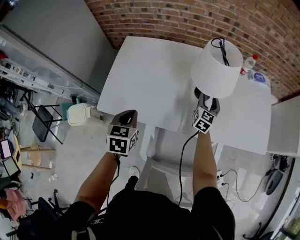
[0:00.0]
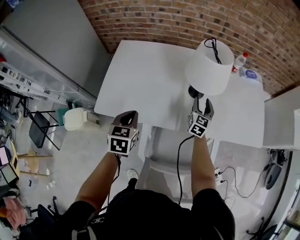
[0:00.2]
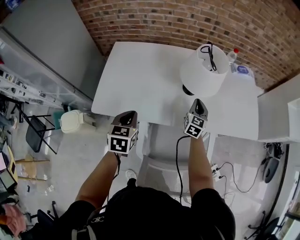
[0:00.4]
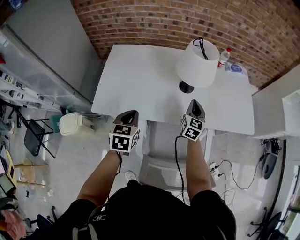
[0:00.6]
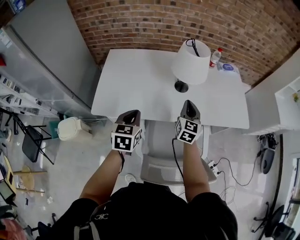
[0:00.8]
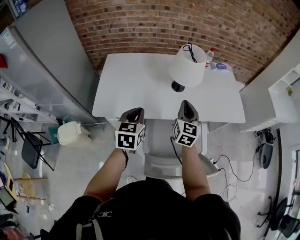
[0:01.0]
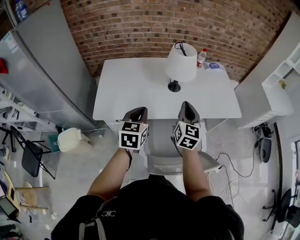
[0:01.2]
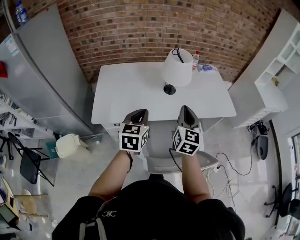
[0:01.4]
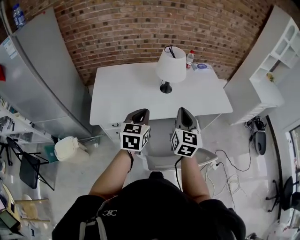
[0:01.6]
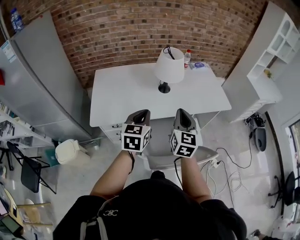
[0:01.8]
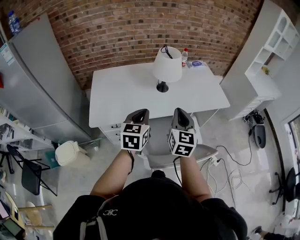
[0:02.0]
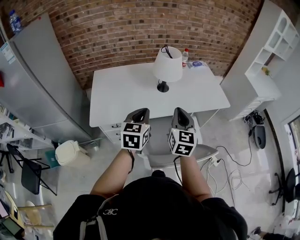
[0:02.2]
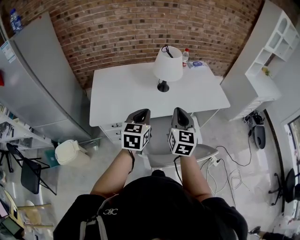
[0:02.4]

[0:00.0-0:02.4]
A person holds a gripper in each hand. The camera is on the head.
0:00.0 to 0:01.2: The left gripper shifts some 15 cm upward, backward and to the right, and turns by roughly 30 degrees. Meanwhile the right gripper heads backward and upward, covering approximately 35 cm, and closes.
0:01.2 to 0:02.4: The right gripper moves backward, some 10 cm; the left gripper shifts by approximately 5 cm.

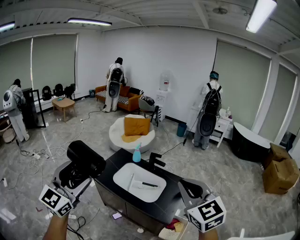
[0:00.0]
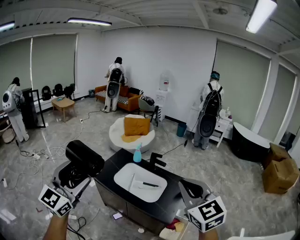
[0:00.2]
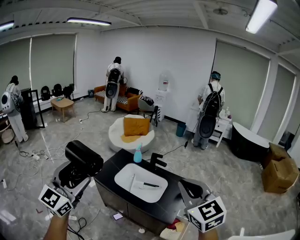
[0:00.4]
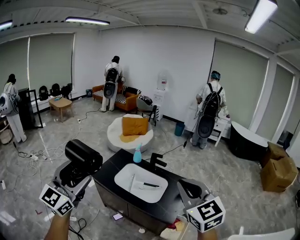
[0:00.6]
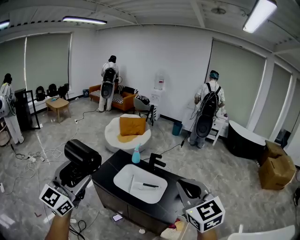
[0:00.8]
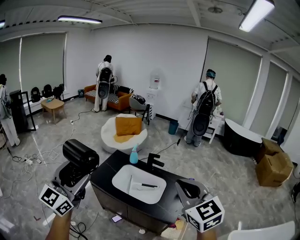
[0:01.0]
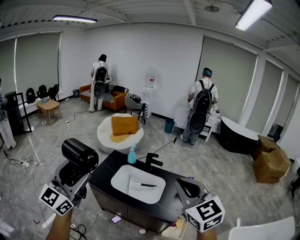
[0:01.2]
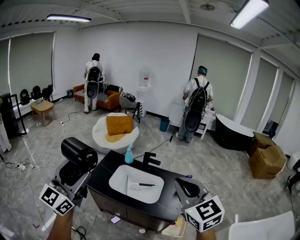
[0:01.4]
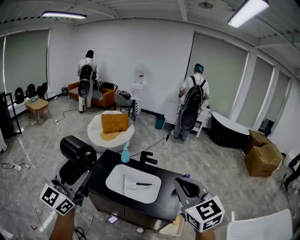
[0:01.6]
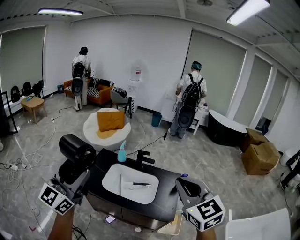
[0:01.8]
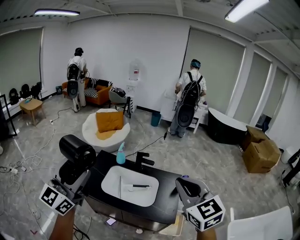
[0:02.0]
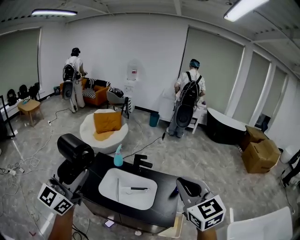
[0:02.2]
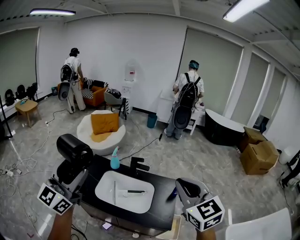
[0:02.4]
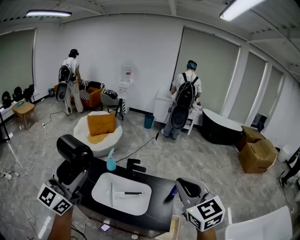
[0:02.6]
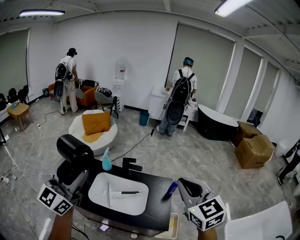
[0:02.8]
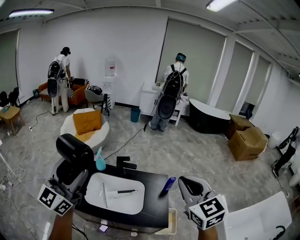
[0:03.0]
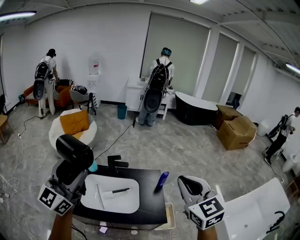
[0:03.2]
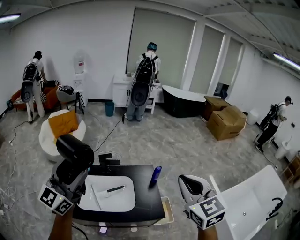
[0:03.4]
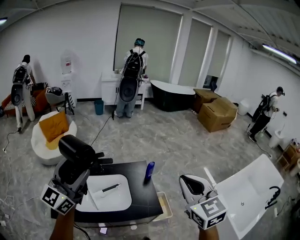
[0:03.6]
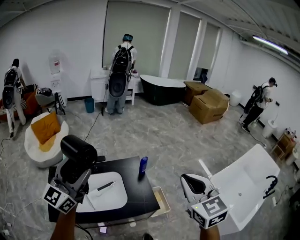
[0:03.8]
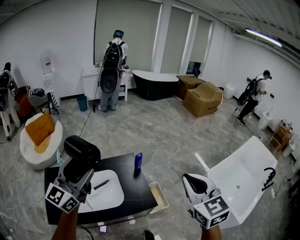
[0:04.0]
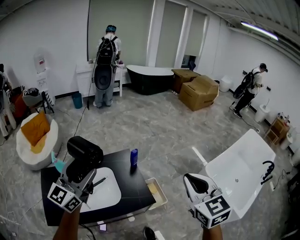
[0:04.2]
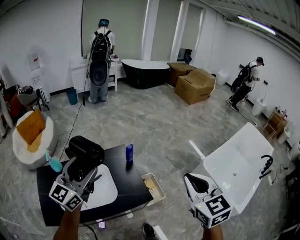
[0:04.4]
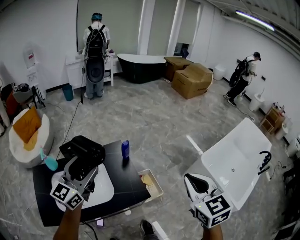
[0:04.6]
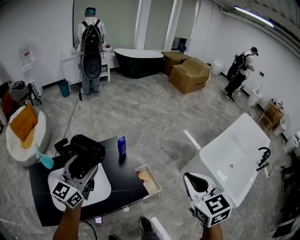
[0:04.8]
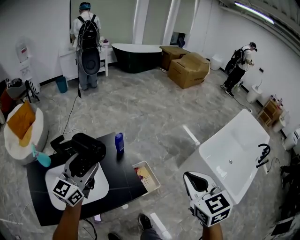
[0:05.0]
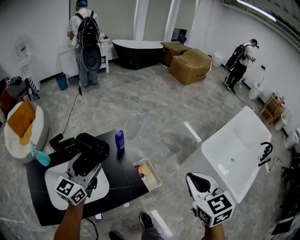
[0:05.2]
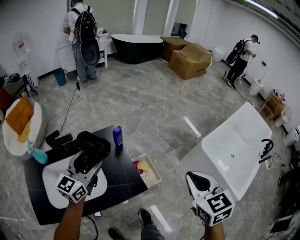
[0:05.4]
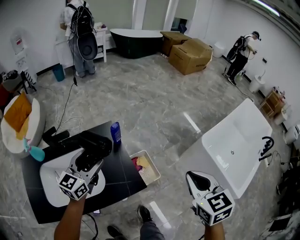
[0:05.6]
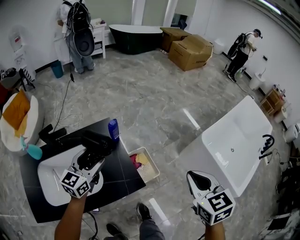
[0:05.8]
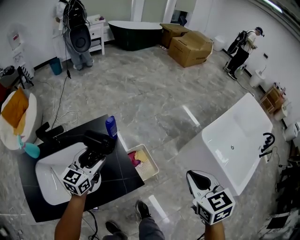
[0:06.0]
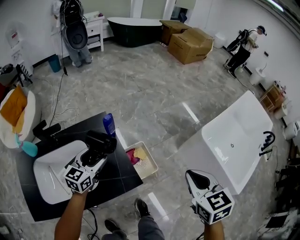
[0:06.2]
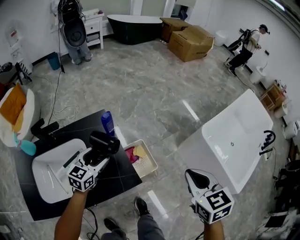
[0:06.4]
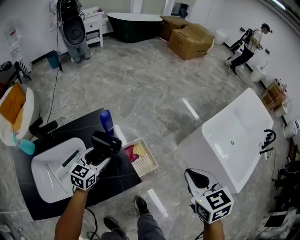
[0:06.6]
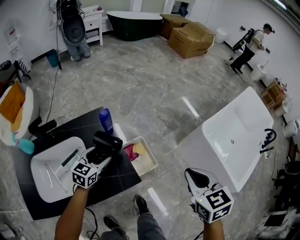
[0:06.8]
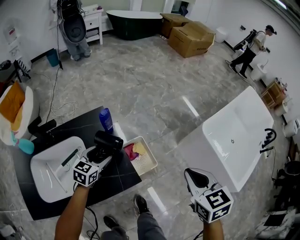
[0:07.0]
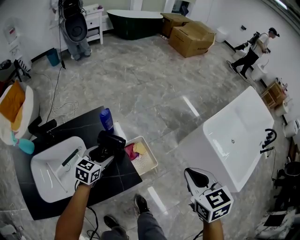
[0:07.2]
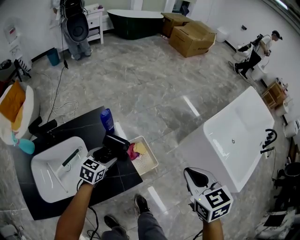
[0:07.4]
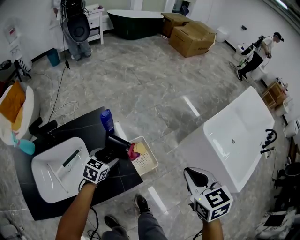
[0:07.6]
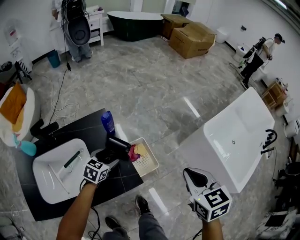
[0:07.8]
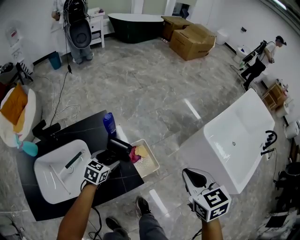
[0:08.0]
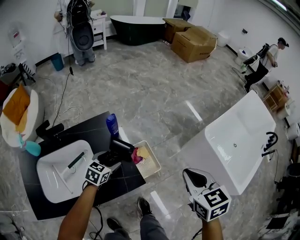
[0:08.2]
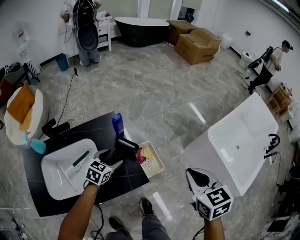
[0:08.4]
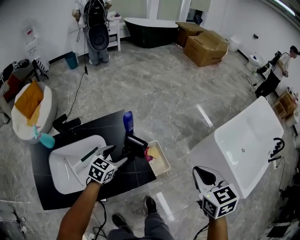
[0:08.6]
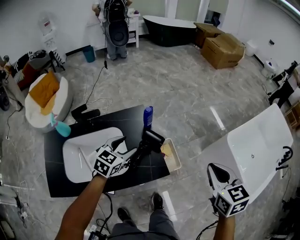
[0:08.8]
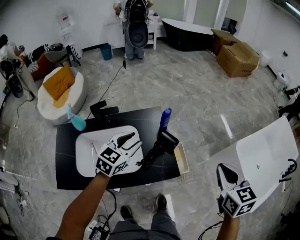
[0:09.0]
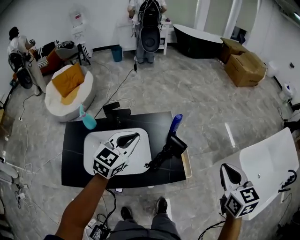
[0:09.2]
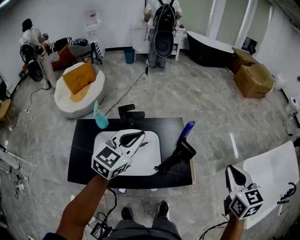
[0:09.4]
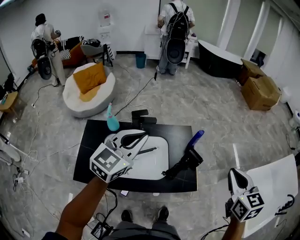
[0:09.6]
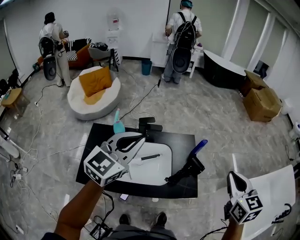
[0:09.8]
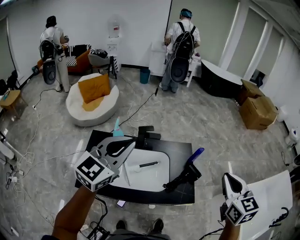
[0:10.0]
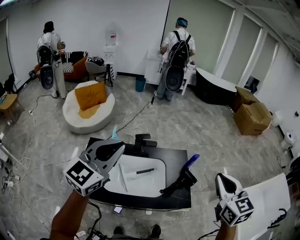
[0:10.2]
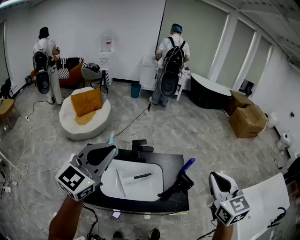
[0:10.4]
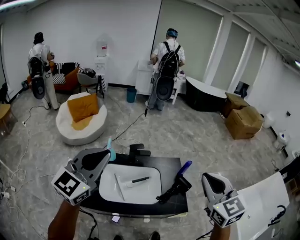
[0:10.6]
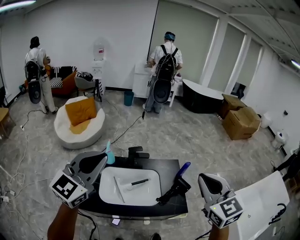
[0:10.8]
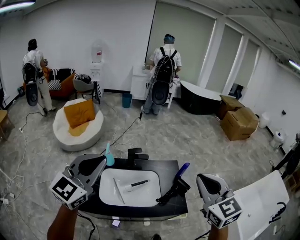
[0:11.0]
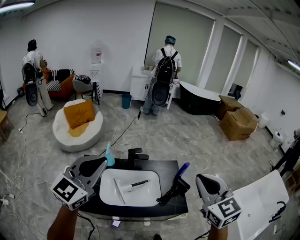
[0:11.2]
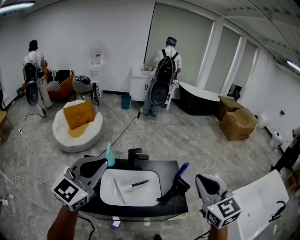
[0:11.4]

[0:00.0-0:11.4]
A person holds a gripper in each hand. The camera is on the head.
0:00.0 to 0:01.4: The left gripper heads forward and to the left, covering roughly 10 cm, while the right gripper goes approximately 10 cm to the left.
0:01.4 to 0:02.8: The right gripper moves forward and to the right, approximately 20 cm, while the left gripper heads forward, covering about 20 cm.
0:02.8 to 0:04.2: The right gripper ends up some 20 cm from where it was, and changes its angle by approximately 40 degrees; the left gripper changes place by roughly 25 cm, and changes its angle by approximately 40 degrees.
0:04.2 to 0:05.6: The left gripper heads downward and forward, covering approximately 25 cm, and turns by about 20 degrees. The right gripper moves downward and to the right, some 20 cm.
0:05.6 to 0:07.2: The right gripper shifts some 10 cm downward. Meanwhile the left gripper moves downward, roughly 20 cm, and changes its angle by some 30 degrees.
0:07.2 to 0:08.6: The right gripper changes place by approximately 5 cm, while the left gripper is displaced upward by roughly 5 cm.
0:08.6 to 0:10.0: The right gripper is displaced to the left and upward by some 35 cm, and changes its angle by roughly 20 degrees. The left gripper shifts approximately 50 cm upward and to the left, angles its fingers upward, by about 30 degrees, and closes up.
0:10.0 to 0:11.4: The left gripper moves upward, backward and to the left, some 15 cm, while the right gripper is displaced to the left, upward and backward by approximately 15 cm.

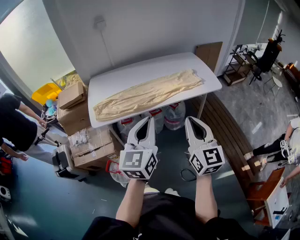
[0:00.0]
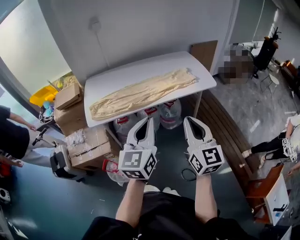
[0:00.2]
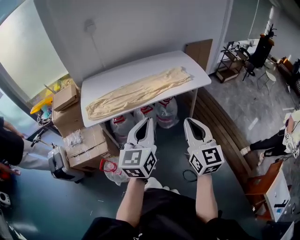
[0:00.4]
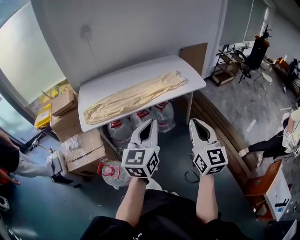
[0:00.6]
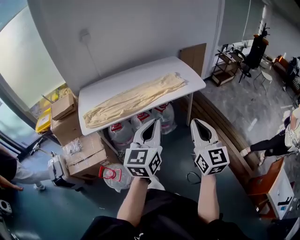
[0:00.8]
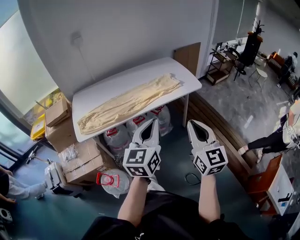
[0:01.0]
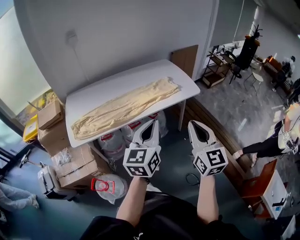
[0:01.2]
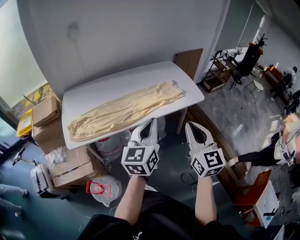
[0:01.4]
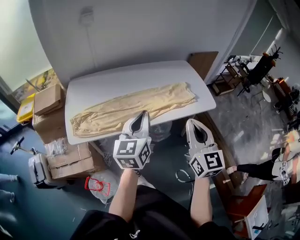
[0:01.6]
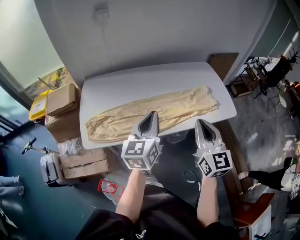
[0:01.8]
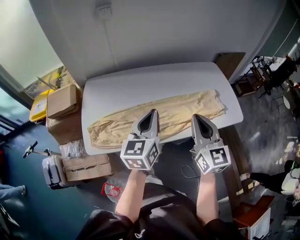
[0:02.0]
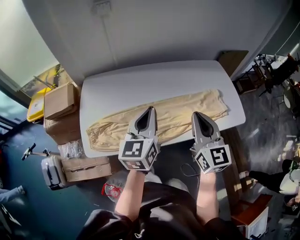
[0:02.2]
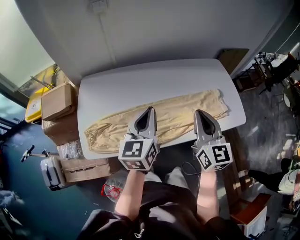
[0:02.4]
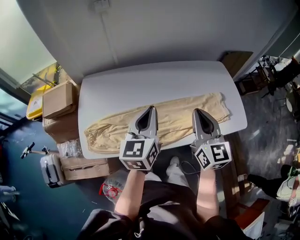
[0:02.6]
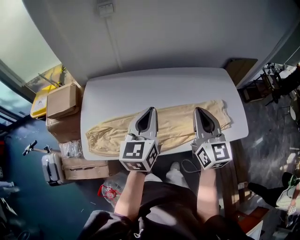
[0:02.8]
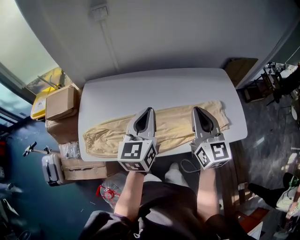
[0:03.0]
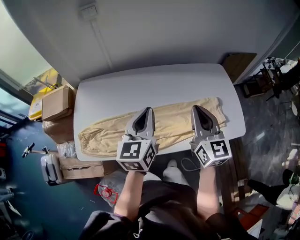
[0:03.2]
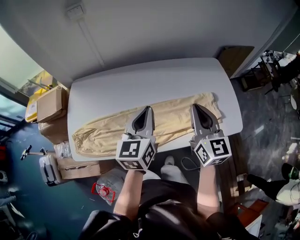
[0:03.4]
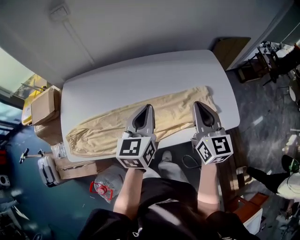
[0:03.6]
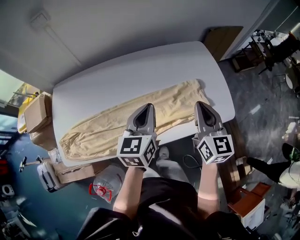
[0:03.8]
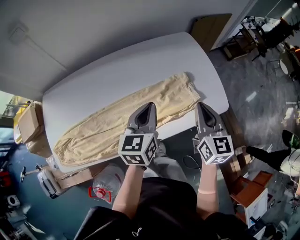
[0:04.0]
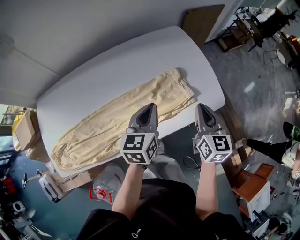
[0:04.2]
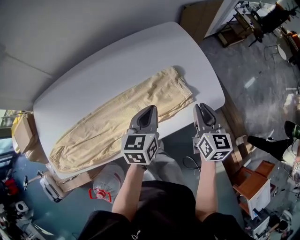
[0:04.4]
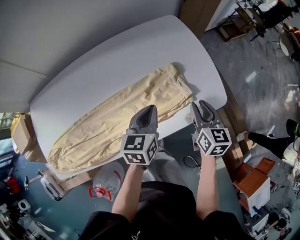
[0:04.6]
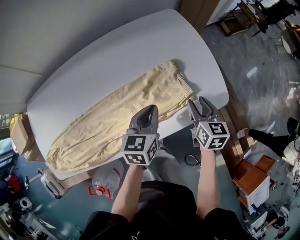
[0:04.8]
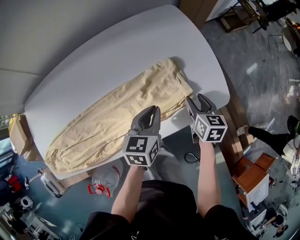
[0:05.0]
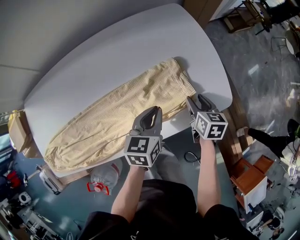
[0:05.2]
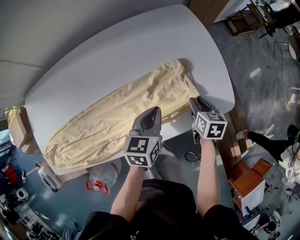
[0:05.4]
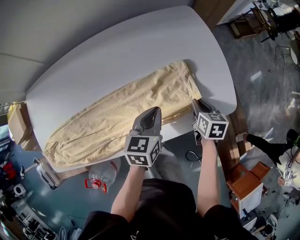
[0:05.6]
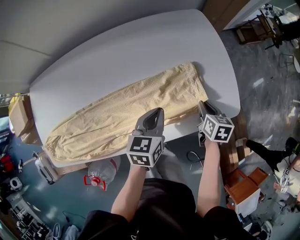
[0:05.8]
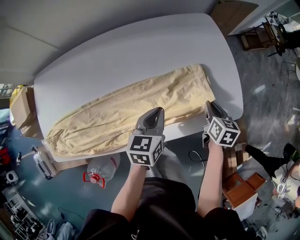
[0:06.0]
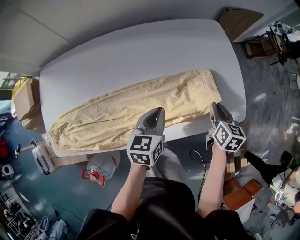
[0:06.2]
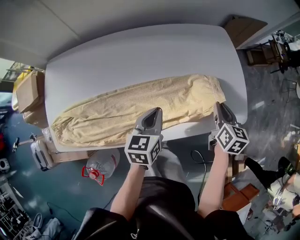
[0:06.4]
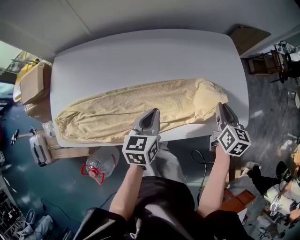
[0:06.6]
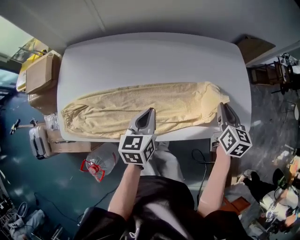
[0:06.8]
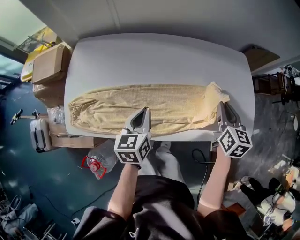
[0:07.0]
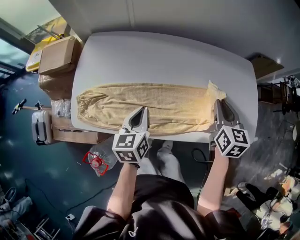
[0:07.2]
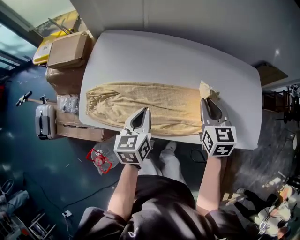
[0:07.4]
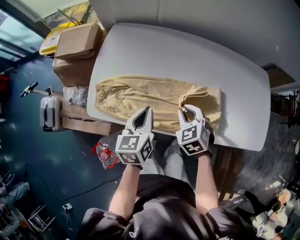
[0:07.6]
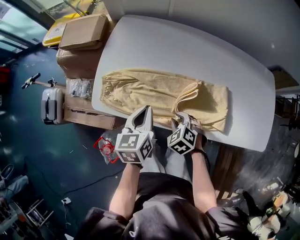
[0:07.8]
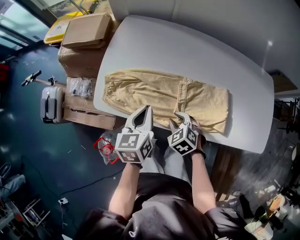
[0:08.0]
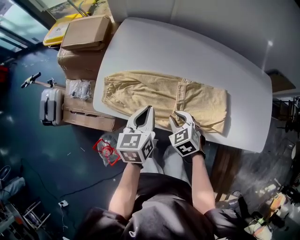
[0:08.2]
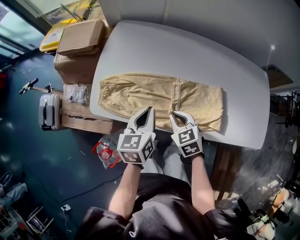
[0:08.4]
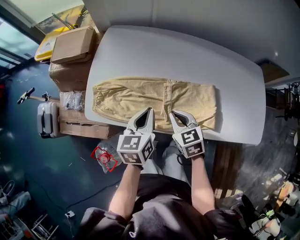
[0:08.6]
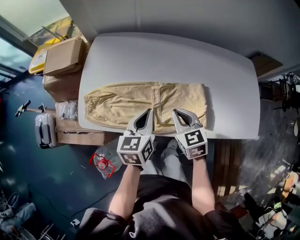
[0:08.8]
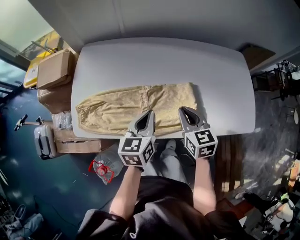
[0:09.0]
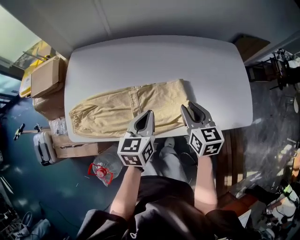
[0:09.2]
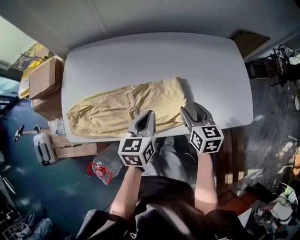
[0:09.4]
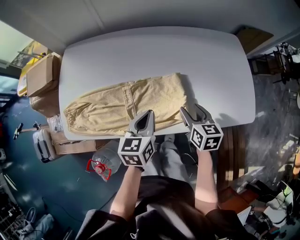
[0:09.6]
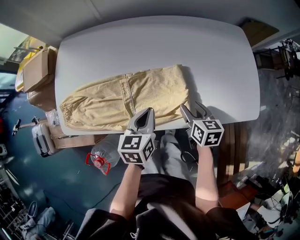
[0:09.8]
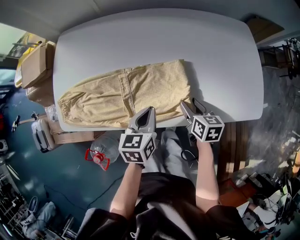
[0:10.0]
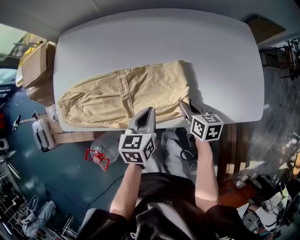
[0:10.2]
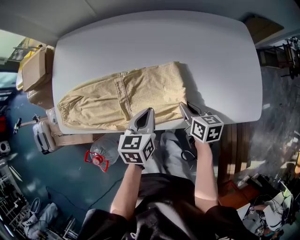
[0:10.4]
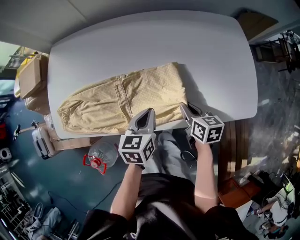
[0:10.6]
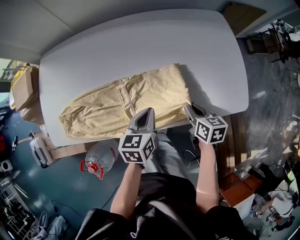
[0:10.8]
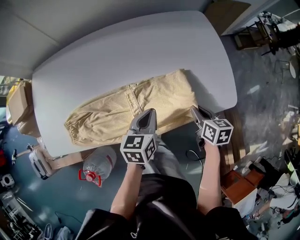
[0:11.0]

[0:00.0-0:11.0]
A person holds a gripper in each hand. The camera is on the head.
0:00.0 to 0:01.6: The grippers both shift forward by approximately 20 cm.
0:01.6 to 0:03.2: Both grippers travel together forward, roughly 25 cm.
0:03.2 to 0:04.8: Both grippers travel together to the right and downward, some 40 cm. The right gripper tips its fingers downward by about 30 degrees, and opens up, while the left gripper rotates approximately 30 degrees.
0:04.8 to 0:06.2: The right gripper moves about 5 cm downward and comes back, and closes; the left gripper goes some 10 cm to the left.
0:06.2 to 0:07.8: Both grippers are carried some 50 cm. The left gripper changes its angle by approximately 30 degrees, while the right gripper rolls counterclockwise, seen from behind, by about 80 degrees.
0:07.8 to 0:09.4: The right gripper ends up roughly 30 cm from where it was, rolls clockwise, seen from behind, by some 60 degrees, and opens; the left gripper moves about 20 cm, and rotates roughly 20 degrees.
0:09.4 to 0:11.0: The grippers both shift to the right by some 20 cm. The right gripper rotates approximately 20 degrees, and closes.
